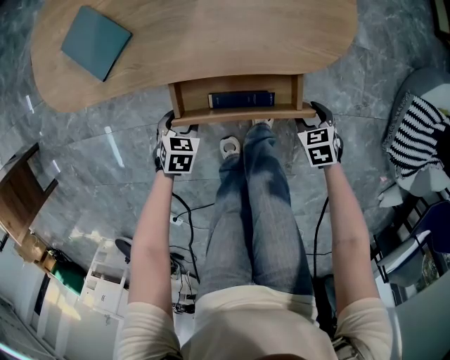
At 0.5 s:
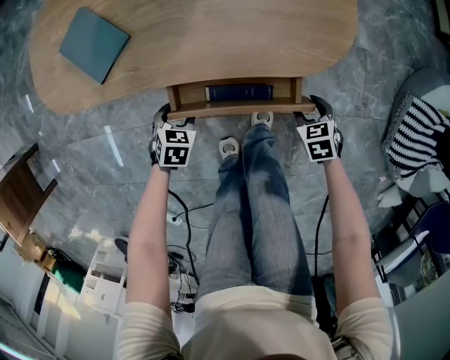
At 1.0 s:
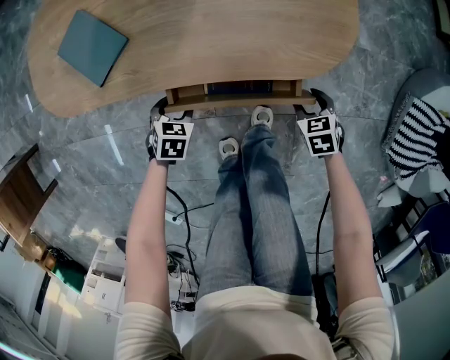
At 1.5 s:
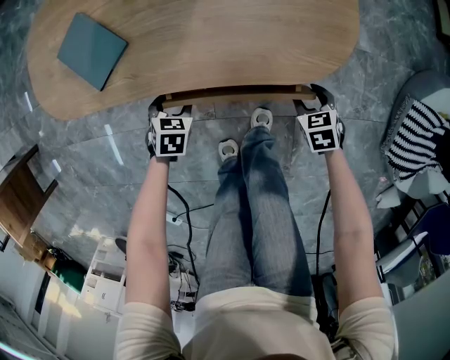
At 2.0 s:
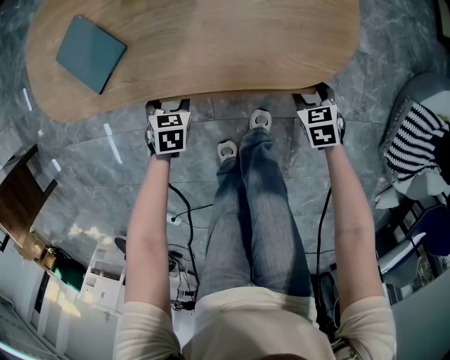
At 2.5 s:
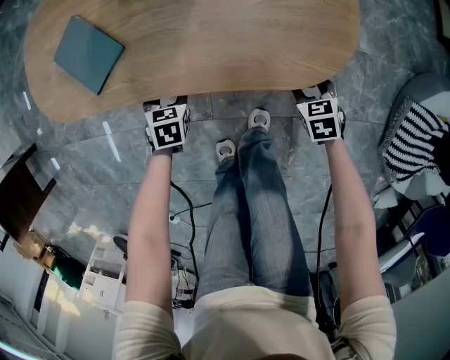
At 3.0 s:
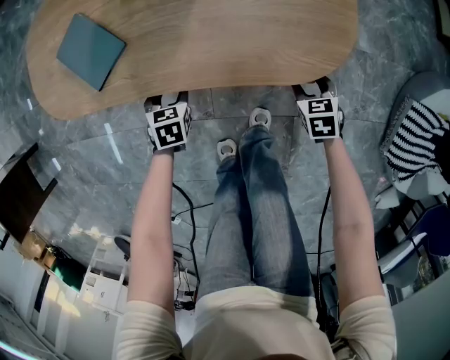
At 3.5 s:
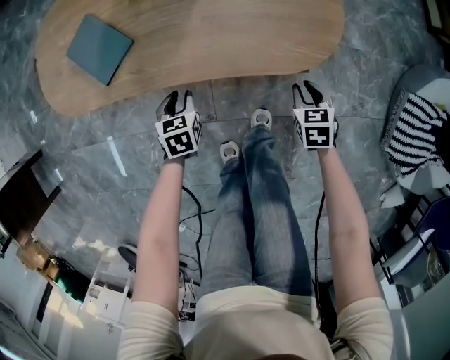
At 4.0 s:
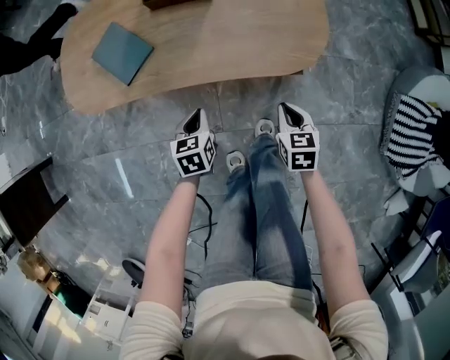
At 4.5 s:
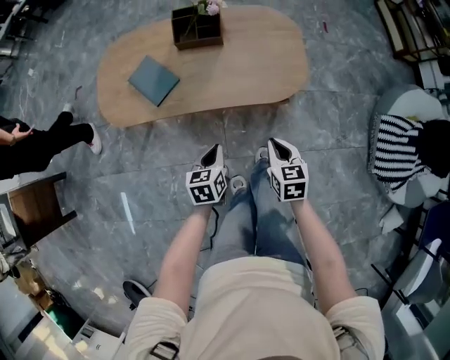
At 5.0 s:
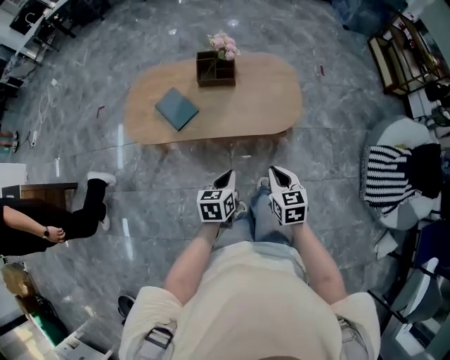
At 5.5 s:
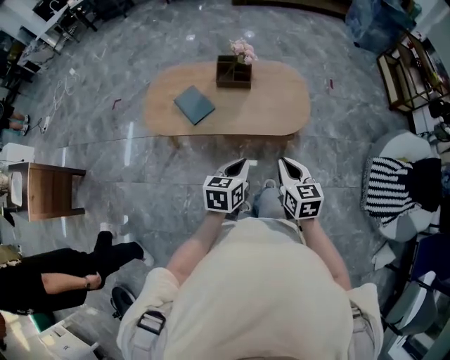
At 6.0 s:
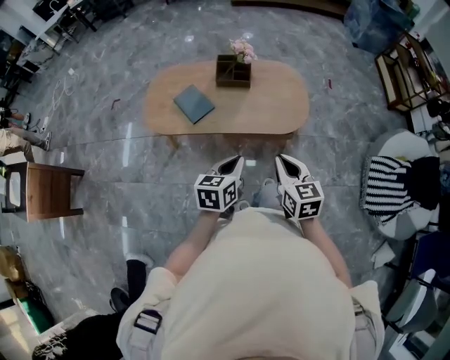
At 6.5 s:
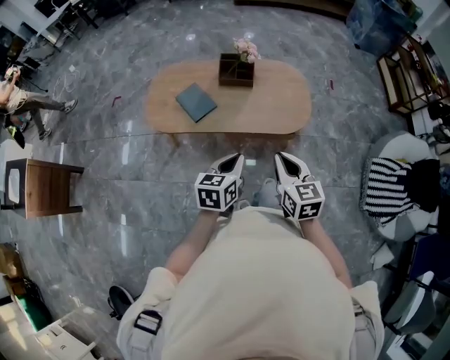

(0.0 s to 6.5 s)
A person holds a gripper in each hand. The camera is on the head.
0.0 s - 2.0 s: Both grippers travel together forward, approximately 10 cm.
2.0 s - 4.5 s: The left gripper travels upward and backward by approximately 30 cm, rotates roughly 30 degrees, and closes. Meanwhile the right gripper travels upward, backward and to the left by about 35 cm, changes its angle by roughly 30 degrees, and closes up.
4.5 s - 6.5 s: Both grippers move upward, approximately 25 cm. The right gripper swivels about 20 degrees.

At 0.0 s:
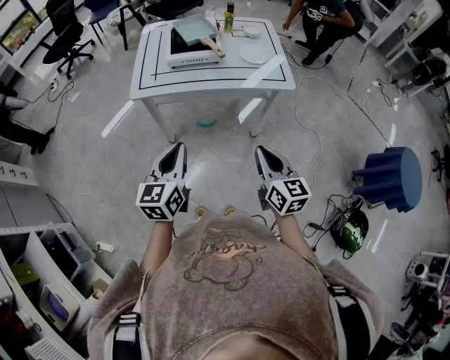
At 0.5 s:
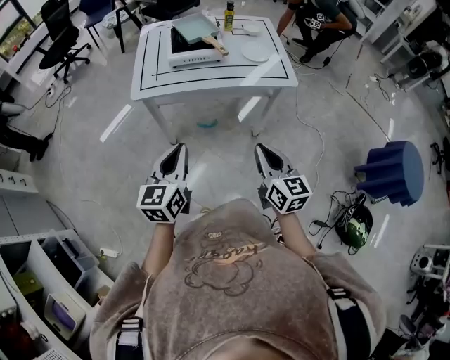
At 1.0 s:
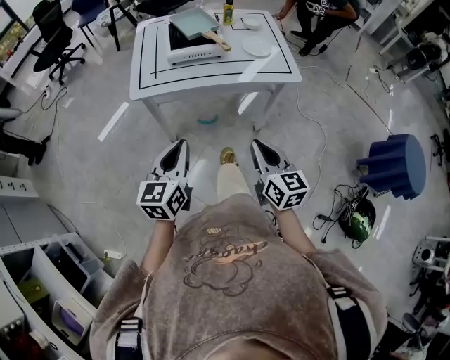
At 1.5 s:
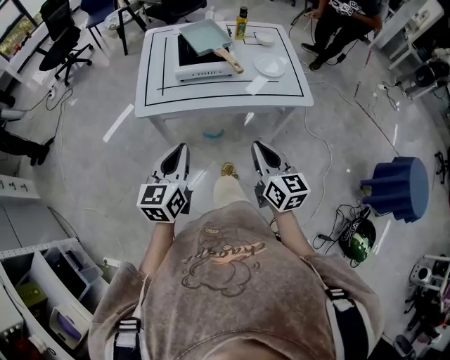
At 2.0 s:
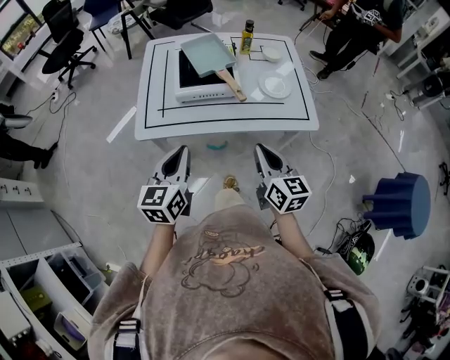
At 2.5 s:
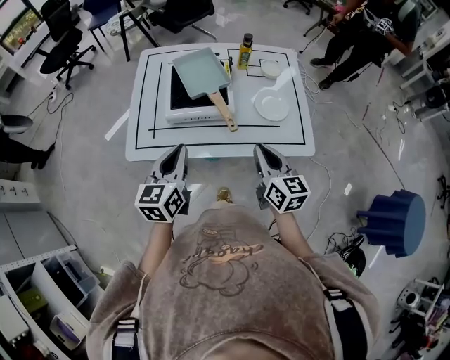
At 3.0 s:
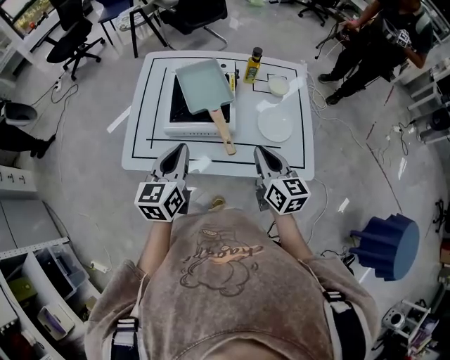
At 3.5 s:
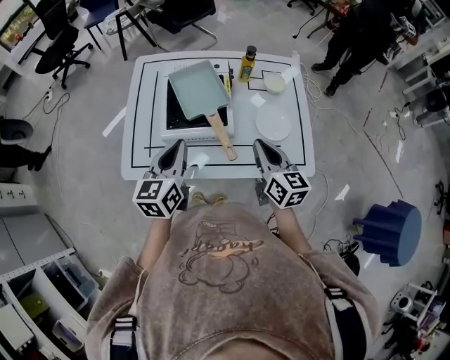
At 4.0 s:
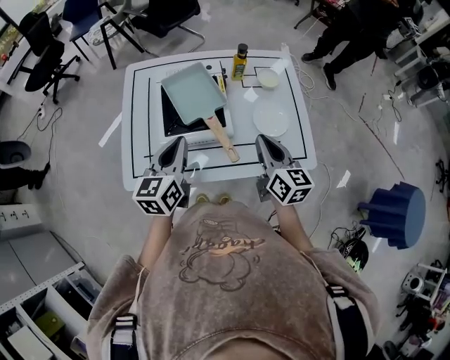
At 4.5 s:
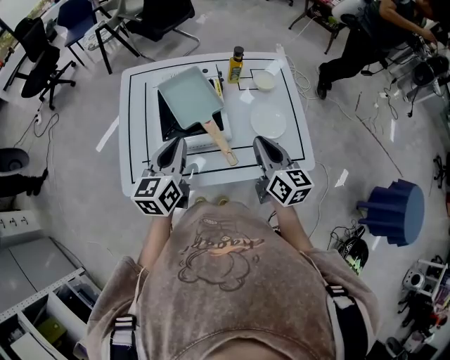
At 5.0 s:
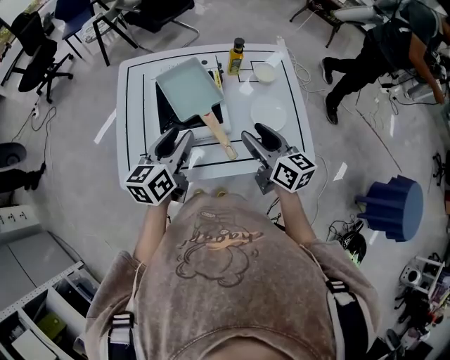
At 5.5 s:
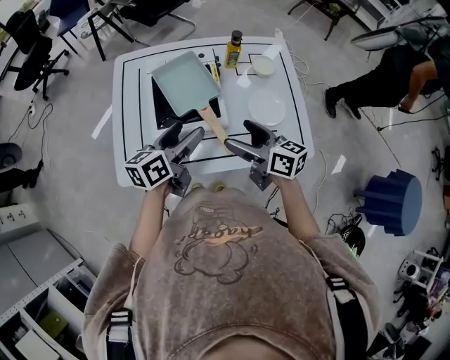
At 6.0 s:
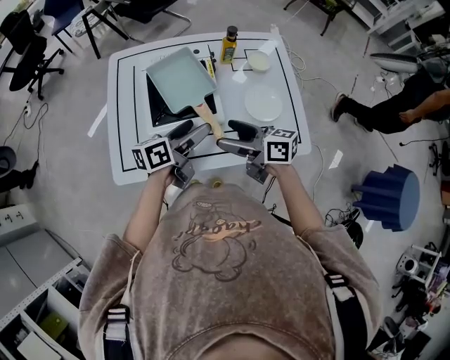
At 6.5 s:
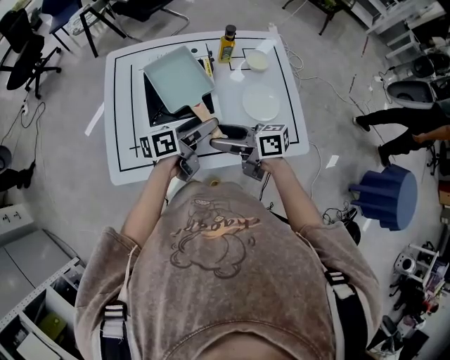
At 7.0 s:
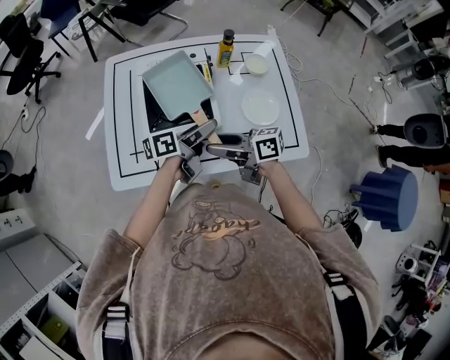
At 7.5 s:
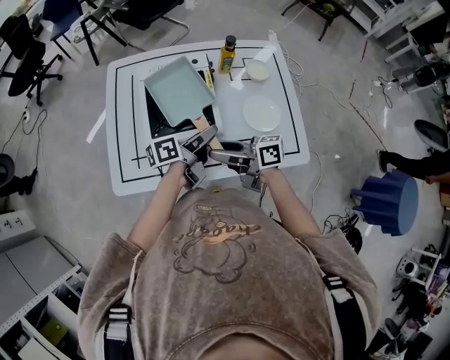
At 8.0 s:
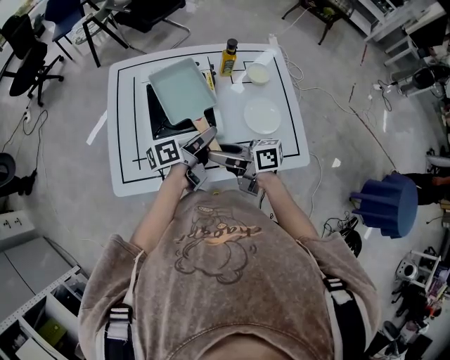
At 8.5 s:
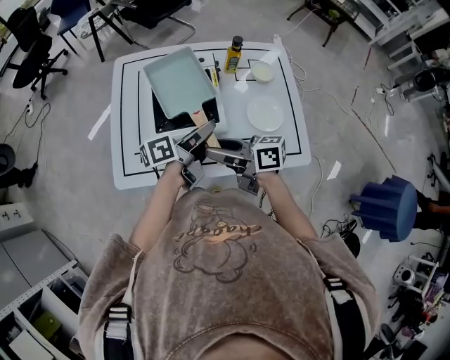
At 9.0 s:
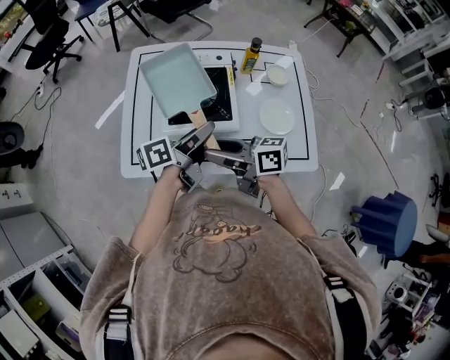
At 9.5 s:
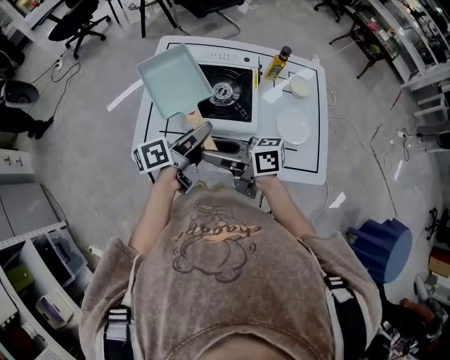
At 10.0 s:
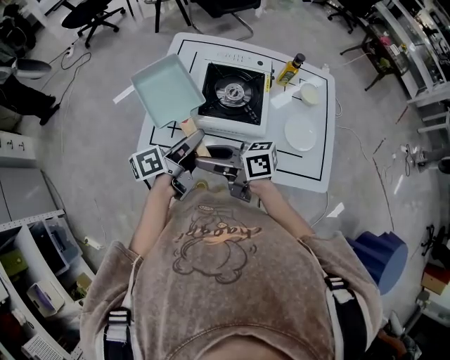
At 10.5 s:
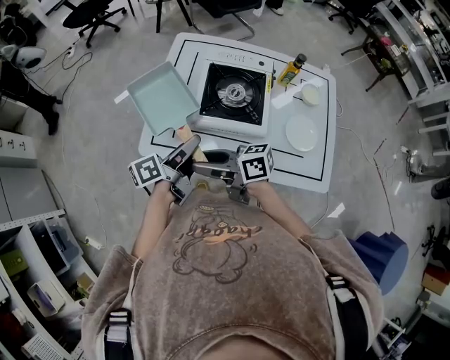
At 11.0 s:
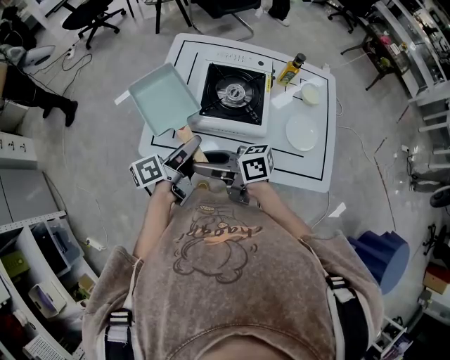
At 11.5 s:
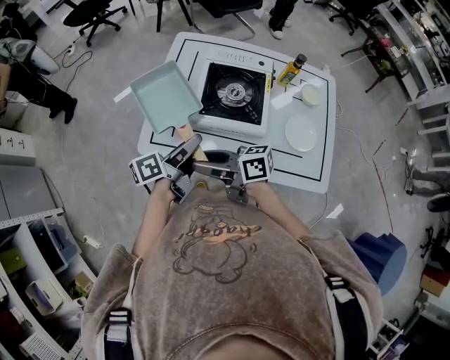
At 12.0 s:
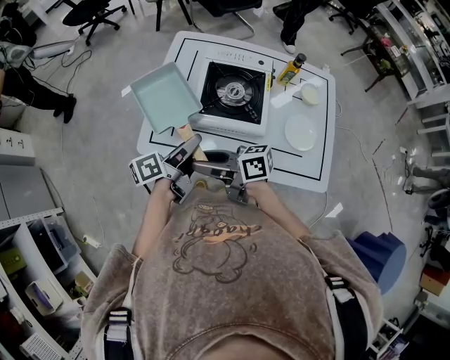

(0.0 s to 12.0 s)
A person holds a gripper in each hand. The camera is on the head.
0.0 s - 2.0 s: The grippers both shift forward by approximately 20 cm.
2.0 s - 4.0 s: Both grippers move forward, roughly 20 cm.
4.0 s - 6.0 s: The right gripper travels to the left by roughly 10 cm, rotates roughly 40 degrees, and opens up; the left gripper moves to the right and downward, about 10 cm, turns by approximately 40 degrees, and opens up.
6.0 s - 8.0 s: The left gripper closes. Meanwhile the right gripper closes.
8.0 s - 10.0 s: The two grippers go roughly 15 cm to the left. The right gripper swivels about 20 degrees. The left gripper changes its angle by some 20 degrees.
10.0 s - 12.0 s: The grippers move only a little.

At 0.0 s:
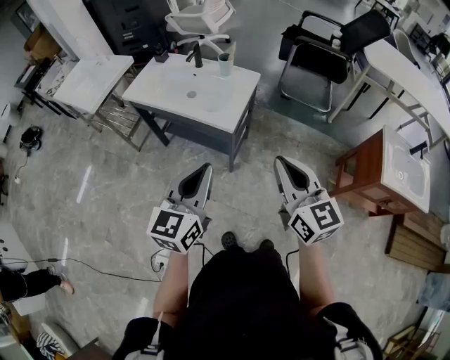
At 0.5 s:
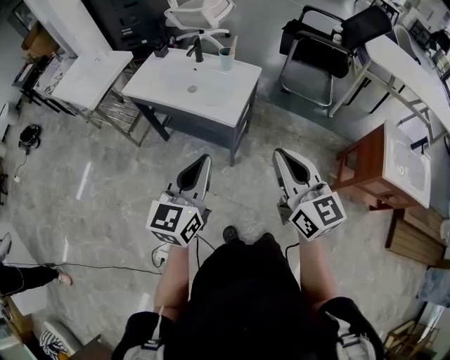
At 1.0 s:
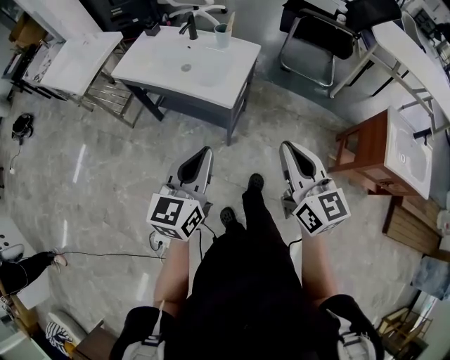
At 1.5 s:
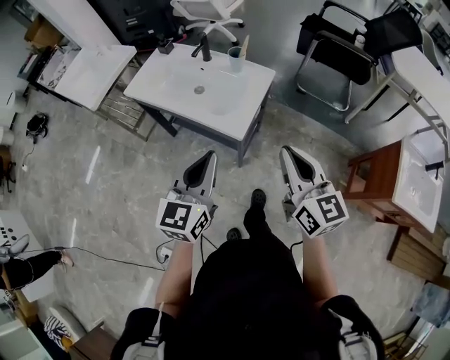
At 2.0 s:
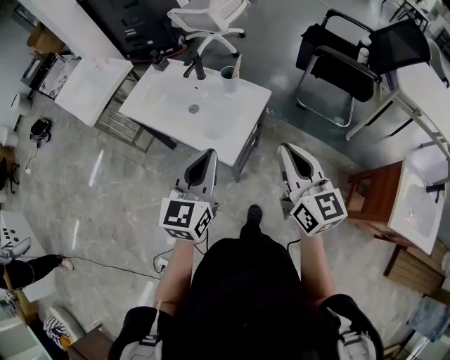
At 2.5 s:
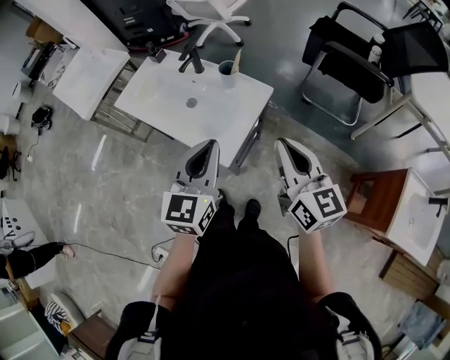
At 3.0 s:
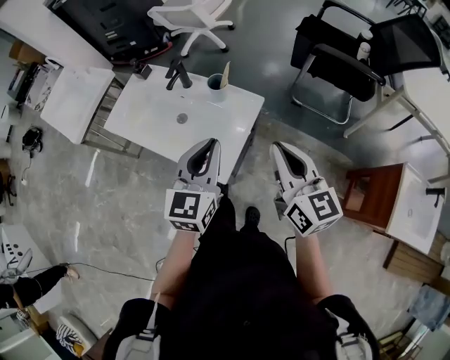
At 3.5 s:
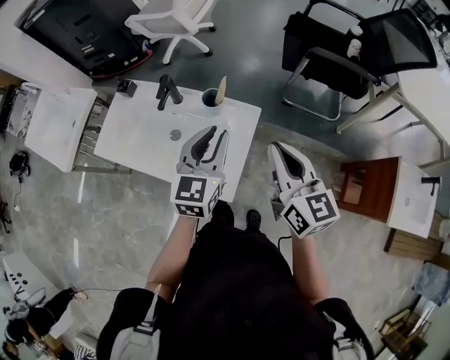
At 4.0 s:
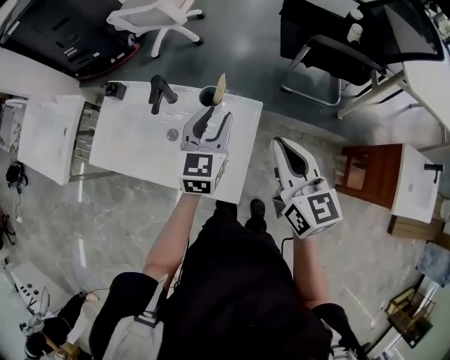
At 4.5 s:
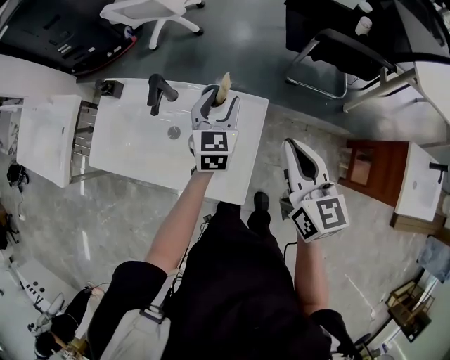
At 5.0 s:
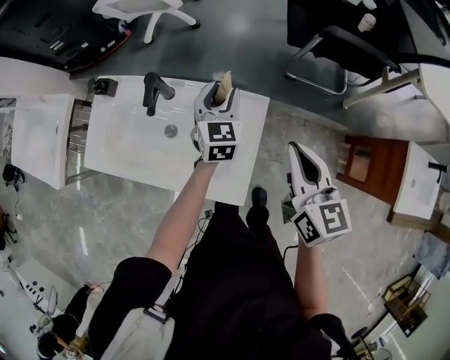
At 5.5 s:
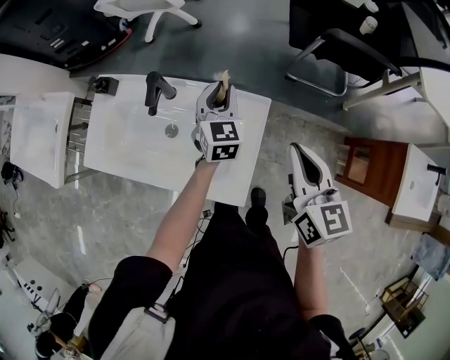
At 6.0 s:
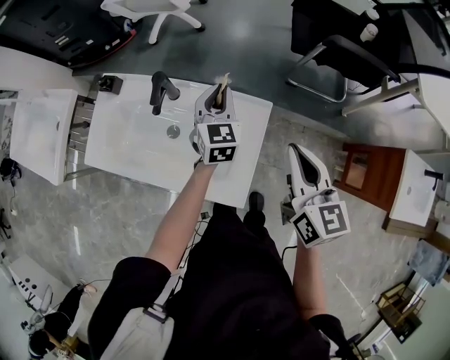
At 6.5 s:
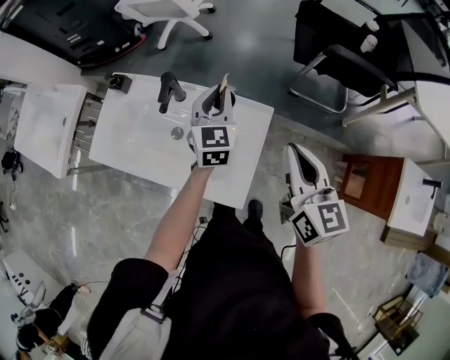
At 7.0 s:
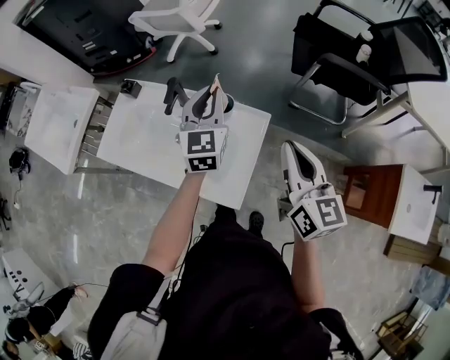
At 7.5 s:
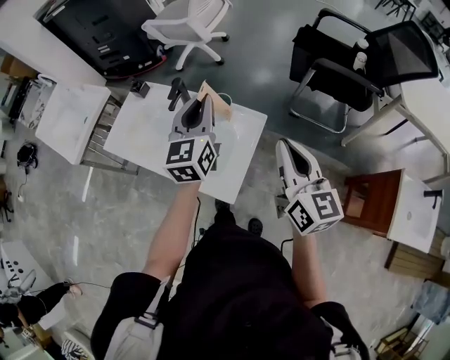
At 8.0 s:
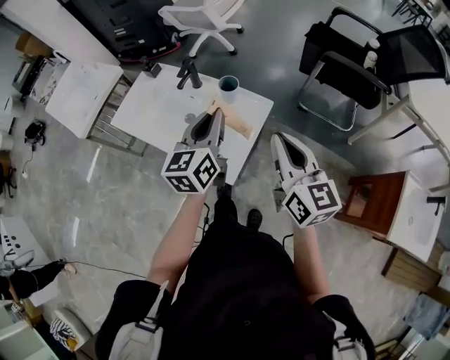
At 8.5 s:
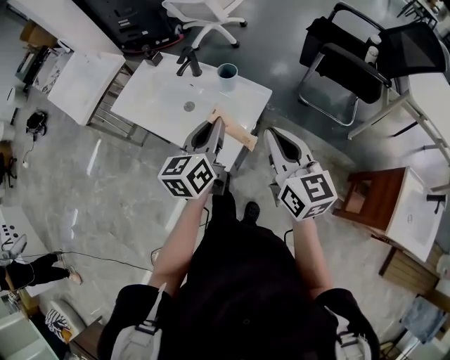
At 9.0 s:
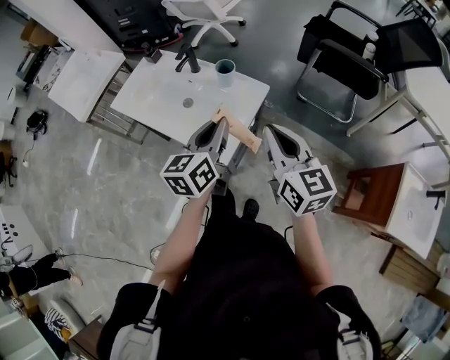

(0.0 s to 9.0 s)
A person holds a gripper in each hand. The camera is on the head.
0.0 s - 2.0 s: Both grippers move forward, roughly 20 cm.
2.0 s - 4.5 s: The left gripper is displaced forward and downward by approximately 40 cm, and opens up; the right gripper moves forward, about 20 cm, and swivels approximately 20 degrees.
4.5 s - 7.0 s: The left gripper is displaced upward by approximately 10 cm, and closes up.
7.0 s - 9.0 s: The right gripper is displaced backward by roughly 10 cm. Meanwhile the left gripper shifts about 25 cm backward, and rotates approximately 30 degrees.
